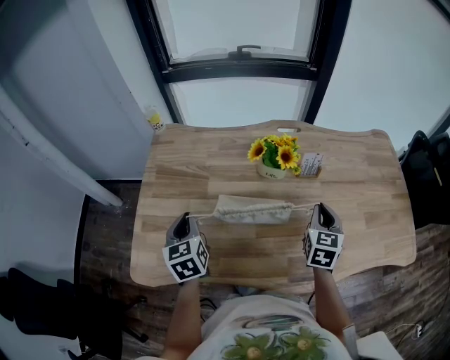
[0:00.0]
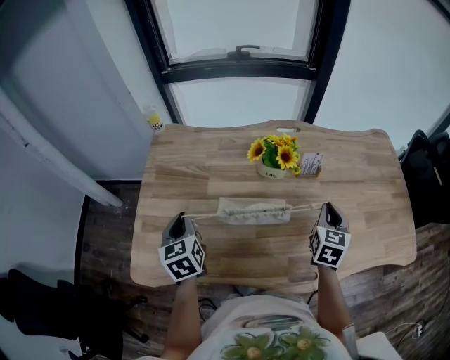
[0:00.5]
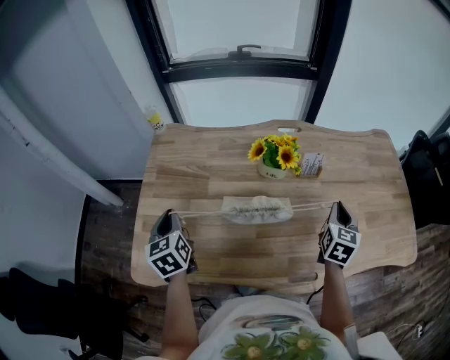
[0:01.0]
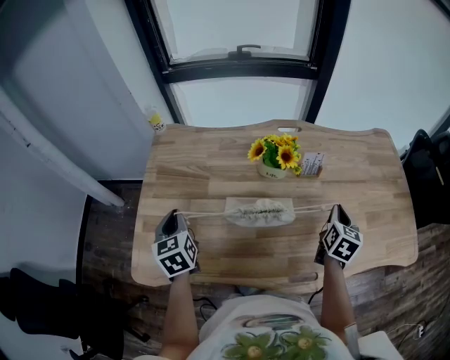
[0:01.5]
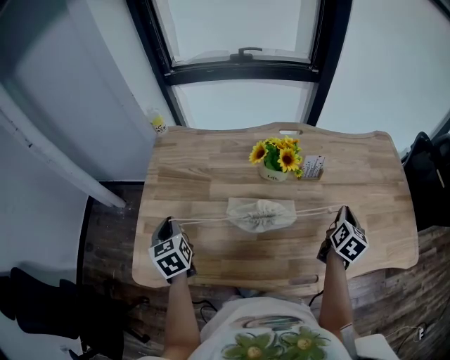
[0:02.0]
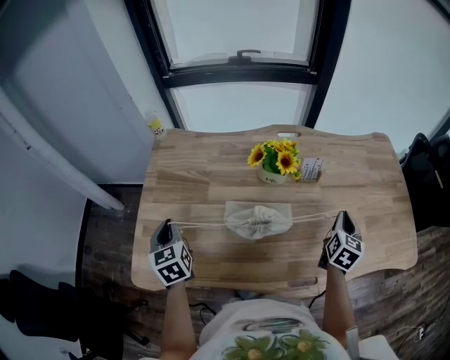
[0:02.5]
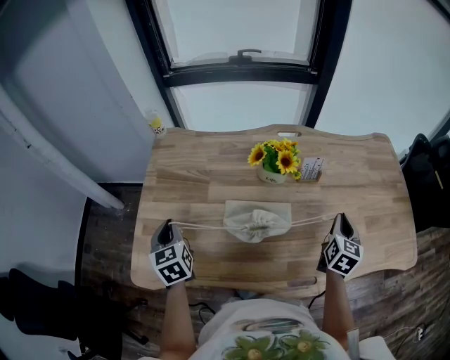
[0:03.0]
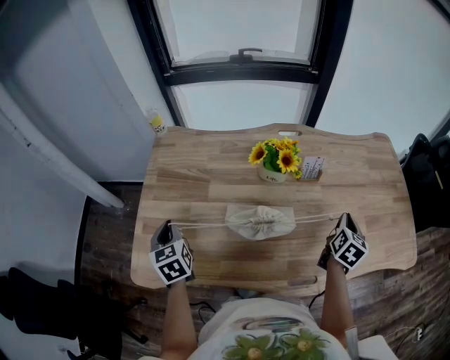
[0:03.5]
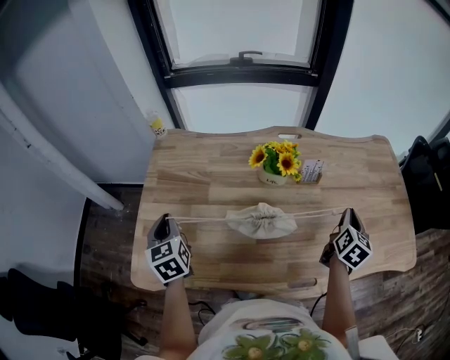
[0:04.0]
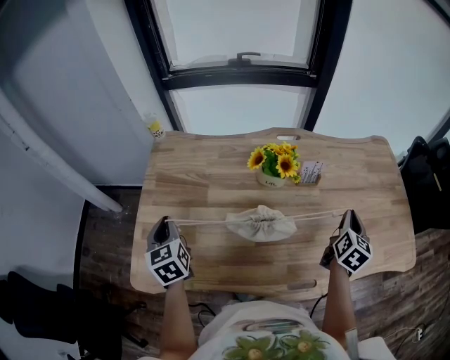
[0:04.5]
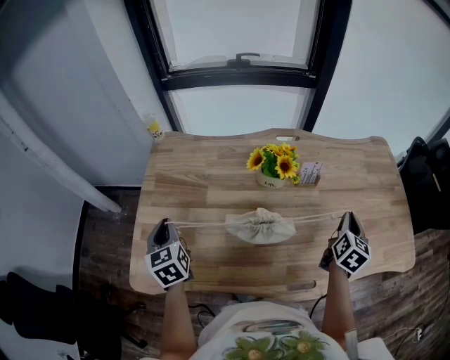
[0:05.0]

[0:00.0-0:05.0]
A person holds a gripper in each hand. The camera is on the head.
0:00.0 to 0:02.5: The left gripper shifts some 5 cm to the left. The right gripper goes approximately 10 cm to the right.
0:02.5 to 0:05.0: The grippers move only a little.
